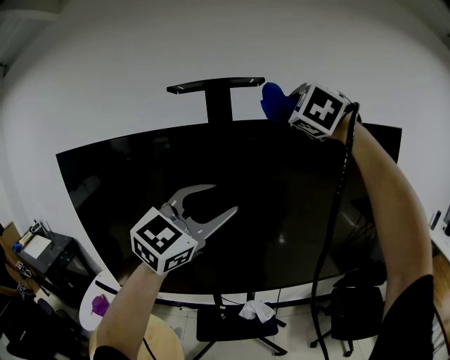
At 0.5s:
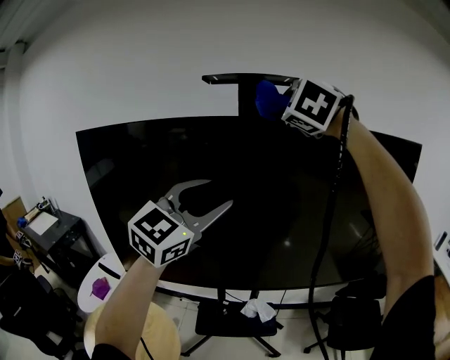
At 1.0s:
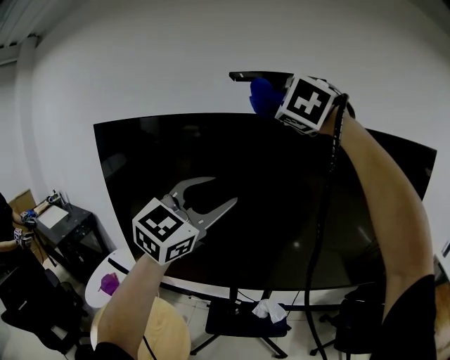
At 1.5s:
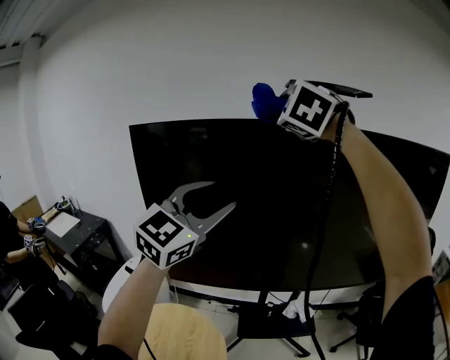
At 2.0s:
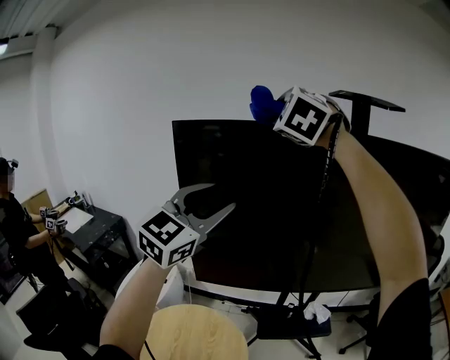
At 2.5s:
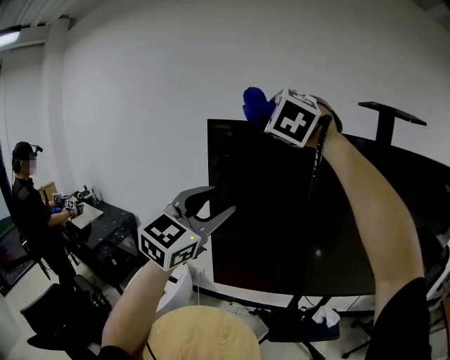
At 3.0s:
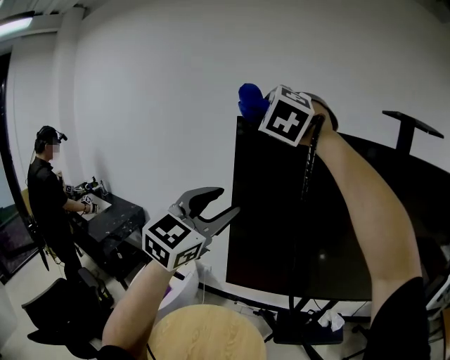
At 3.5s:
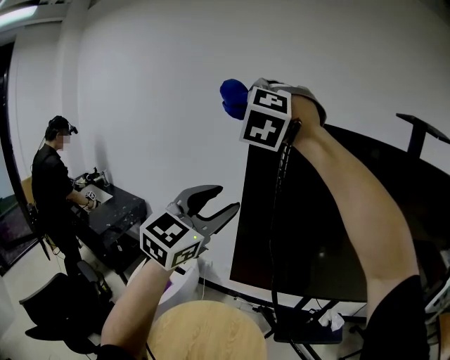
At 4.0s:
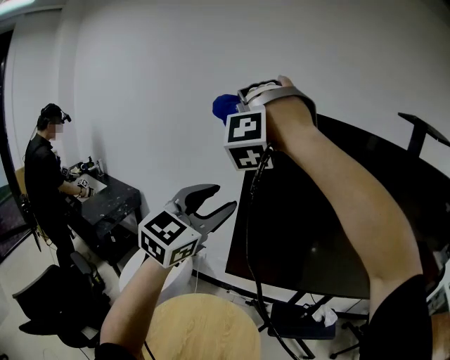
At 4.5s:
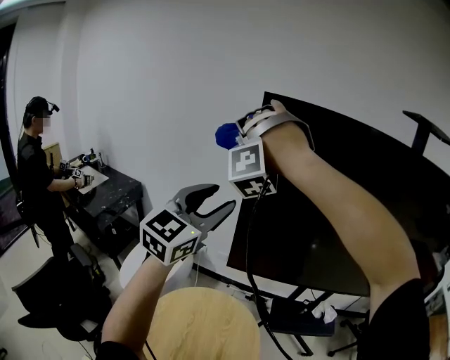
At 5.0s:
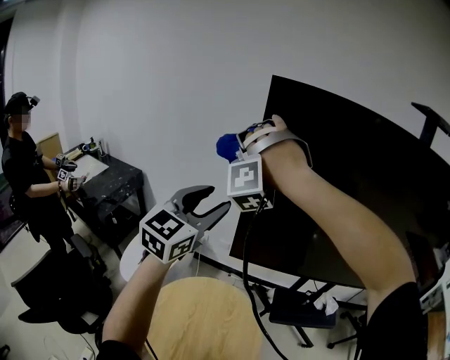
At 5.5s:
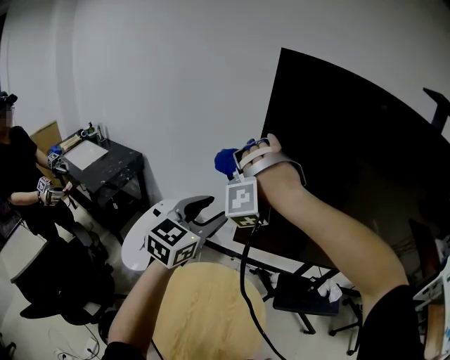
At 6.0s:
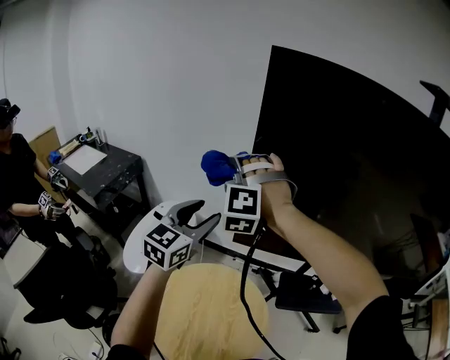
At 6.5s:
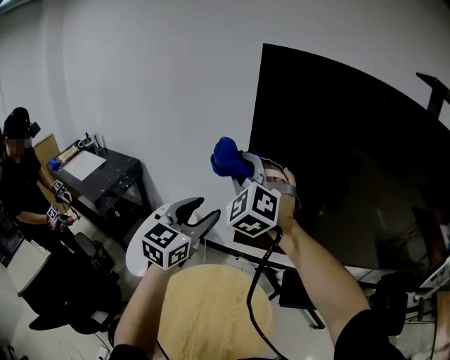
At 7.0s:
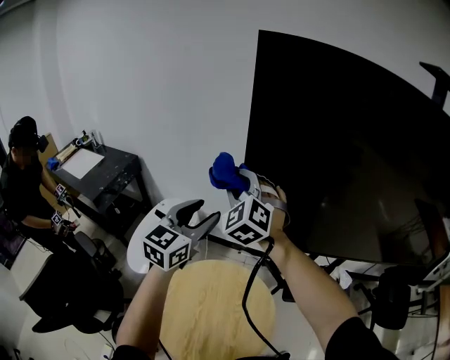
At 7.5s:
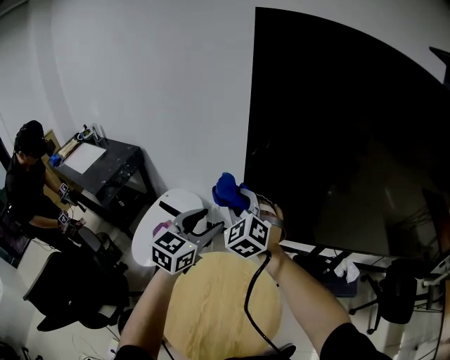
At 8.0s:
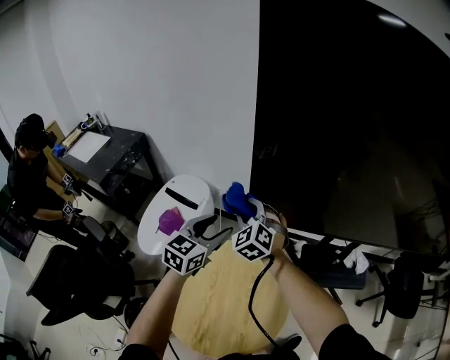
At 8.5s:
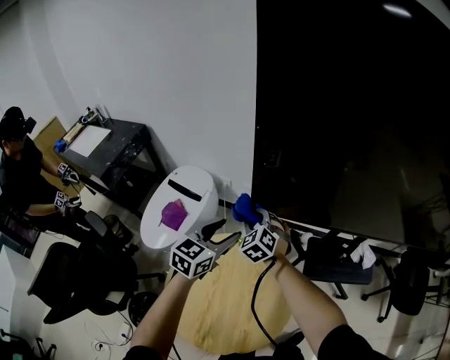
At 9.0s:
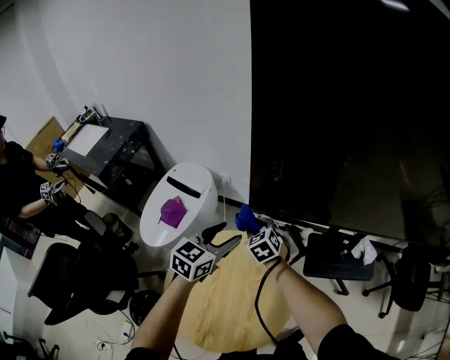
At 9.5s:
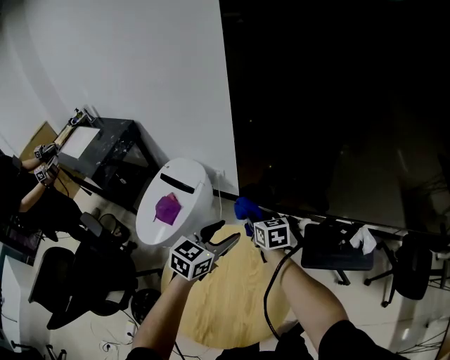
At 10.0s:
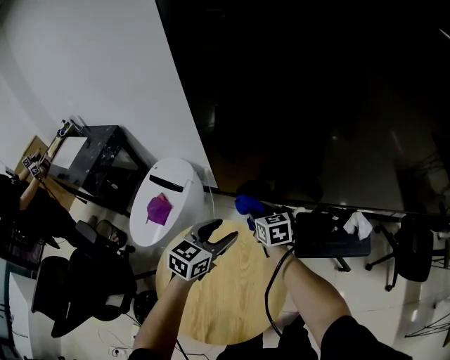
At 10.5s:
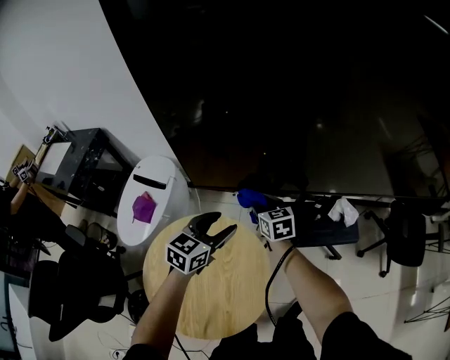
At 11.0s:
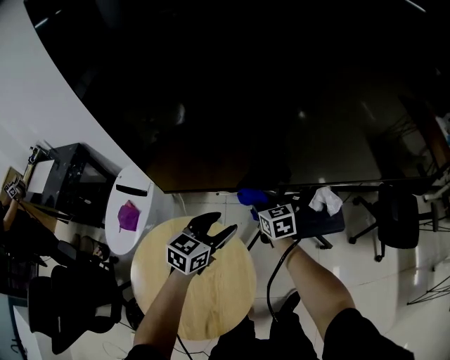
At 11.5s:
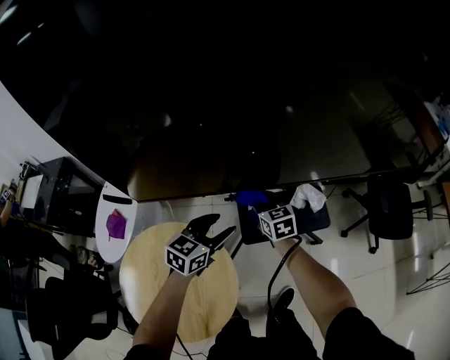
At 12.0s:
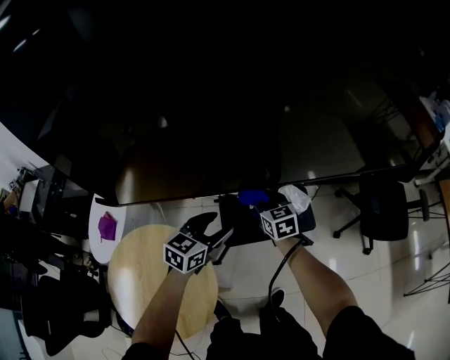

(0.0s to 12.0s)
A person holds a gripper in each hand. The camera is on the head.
0.0s - 2.0s: Both grippers are carried to the left, approximately 40 cm.
2.0s - 4.0s: The right gripper shifts about 30 cm to the left, and twists roughly 50 degrees counterclockwise, seen from behind, while the left gripper goes about 20 cm to the left.
4.0s - 6.0s: The right gripper travels downward by approximately 30 cm, and swivels roughly 30 degrees; the left gripper travels downward by about 20 cm.
6.0s - 8.0s: Both grippers move downward, about 20 cm. The right gripper rotates around the line of its fingers by some 50 degrees, clockwise from behind.
8.0s - 10.0s: The right gripper is displaced downward and to the right by roughly 20 cm, and rotates around the line of its fingers by some 50 degrees, clockwise from behind, while the left gripper heads to the right and downward, covering approximately 15 cm.
10.0s - 12.0s: Both grippers move to the right, approximately 35 cm.

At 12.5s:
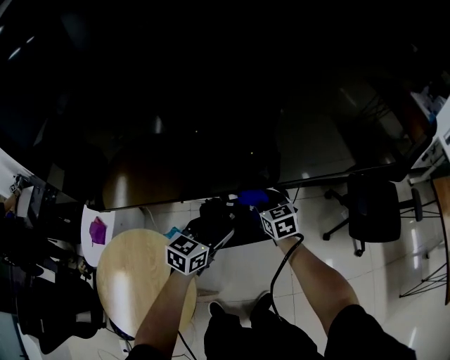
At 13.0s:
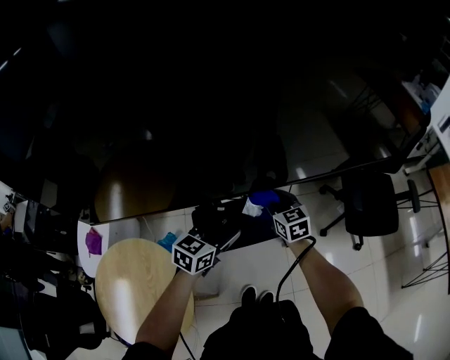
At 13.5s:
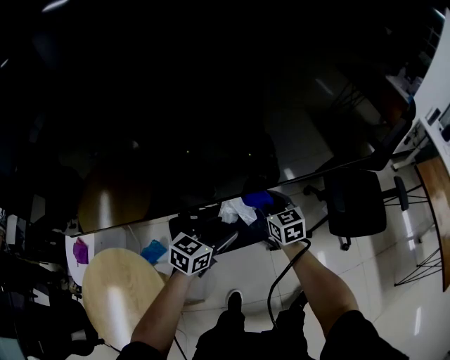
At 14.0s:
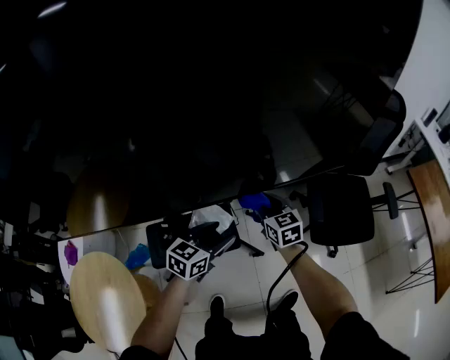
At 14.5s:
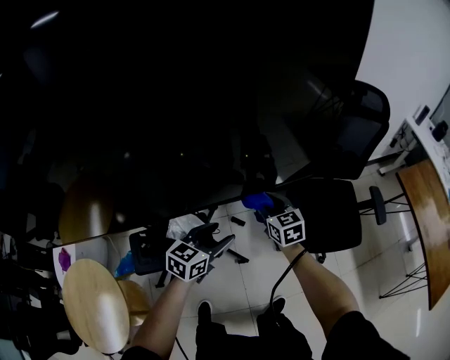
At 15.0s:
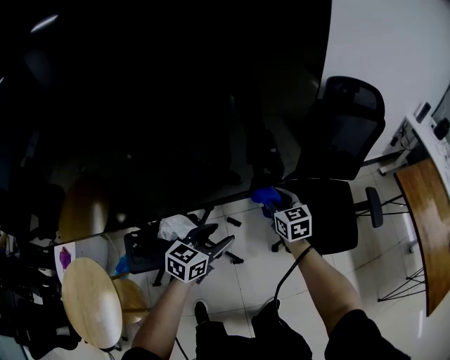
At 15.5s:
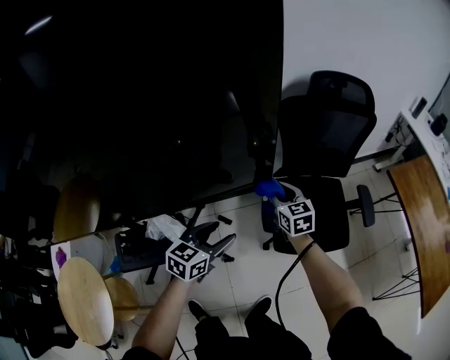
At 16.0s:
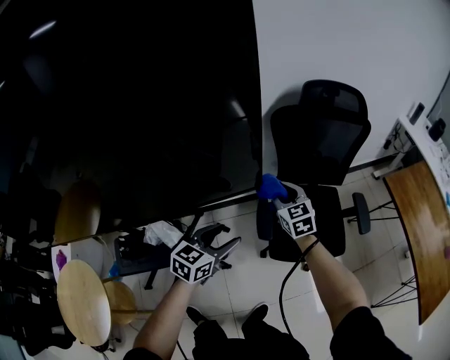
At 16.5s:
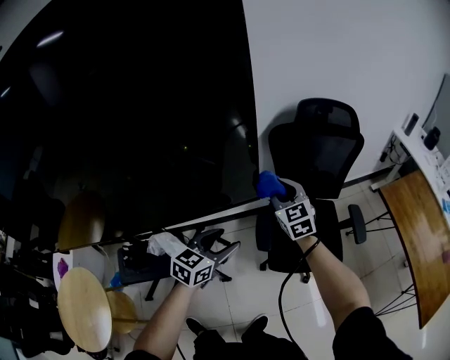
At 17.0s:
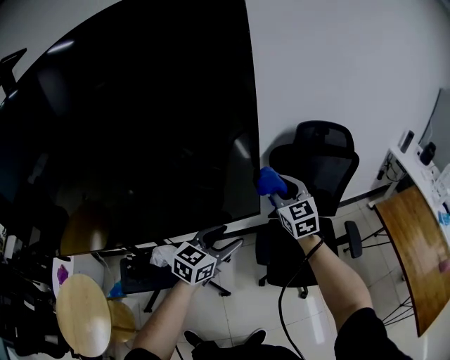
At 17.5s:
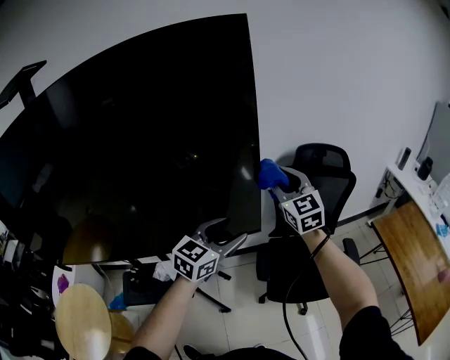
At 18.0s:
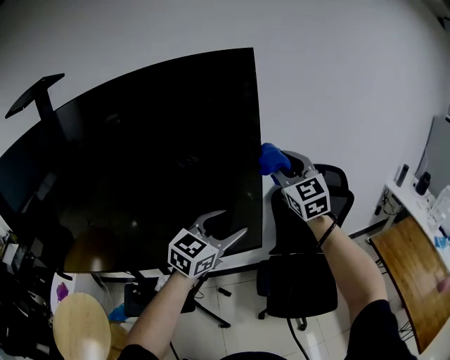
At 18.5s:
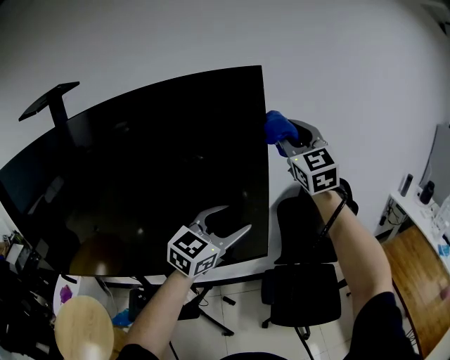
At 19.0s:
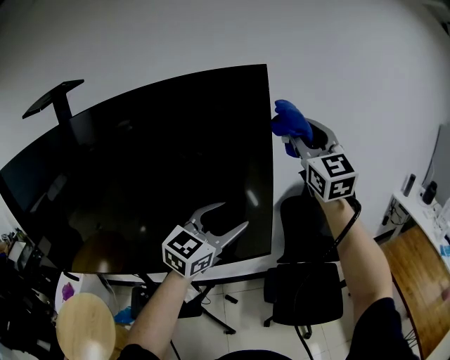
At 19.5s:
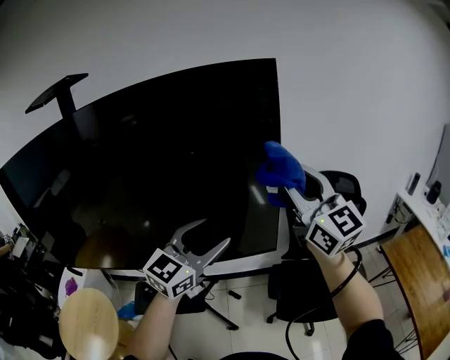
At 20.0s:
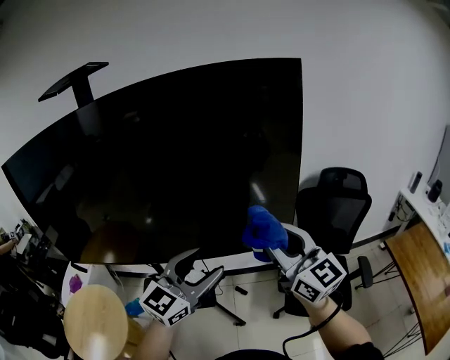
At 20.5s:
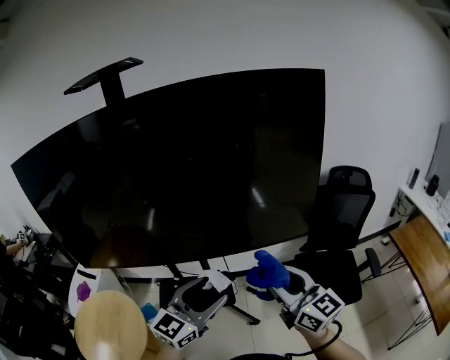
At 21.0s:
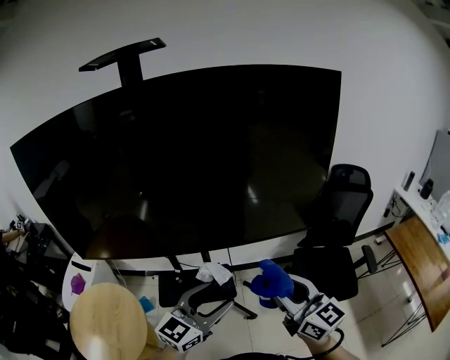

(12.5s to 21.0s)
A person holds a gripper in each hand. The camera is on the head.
12.5s - 14.5s: The two grippers travel together, to the right, roughly 40 cm.
14.5s - 16.5s: The left gripper shifts roughly 20 cm to the right. The right gripper travels to the right, upward and forward by about 25 cm, and rotates roughly 20 degrees.
16.5s - 19.0s: The two grippers go approximately 40 cm upward. The left gripper swivels roughly 30 degrees. Meanwhile the right gripper tips its fingers upward by roughly 40 degrees.
19.0s - 21.0s: The right gripper heads backward, to the left and downward, covering some 50 cm, and turns by some 40 degrees; the left gripper heads to the left, backward and downward, covering some 40 cm.

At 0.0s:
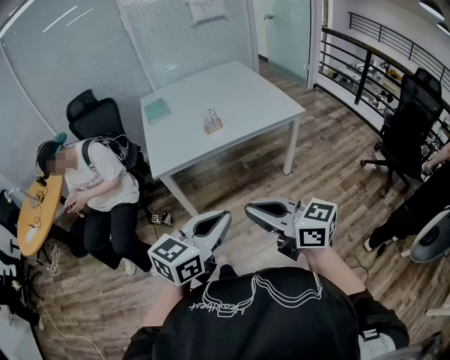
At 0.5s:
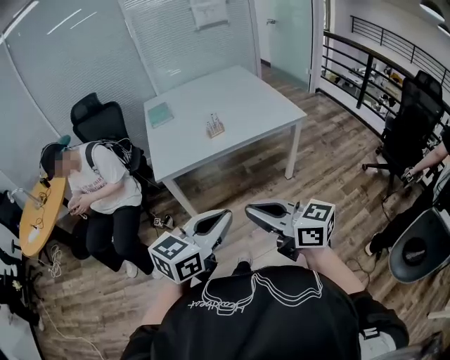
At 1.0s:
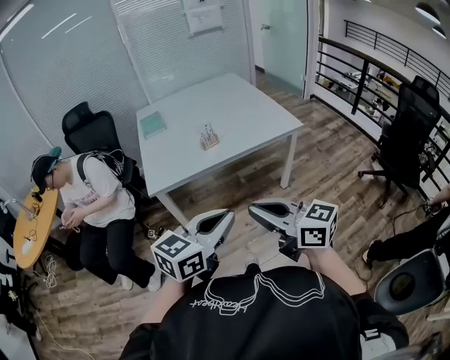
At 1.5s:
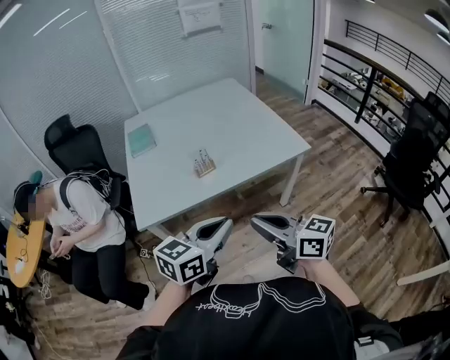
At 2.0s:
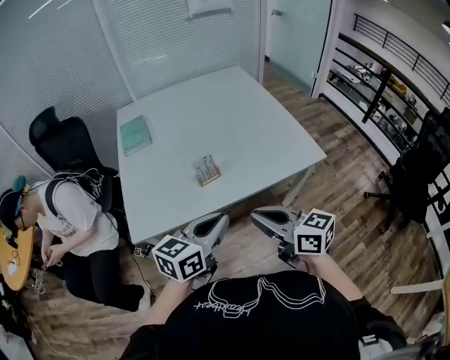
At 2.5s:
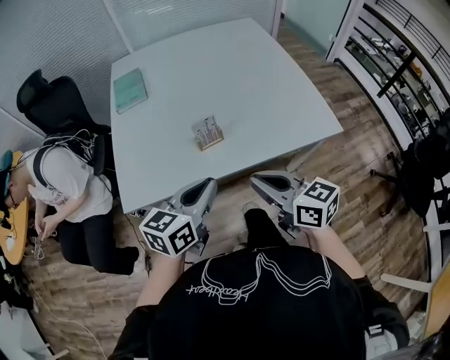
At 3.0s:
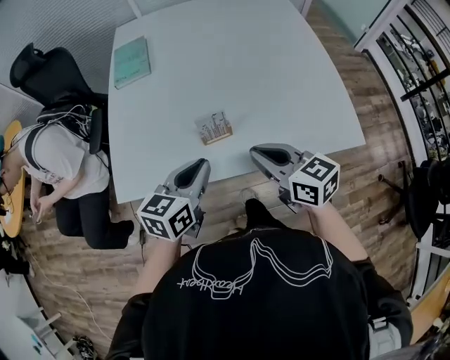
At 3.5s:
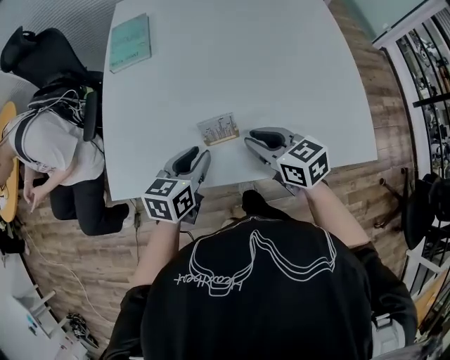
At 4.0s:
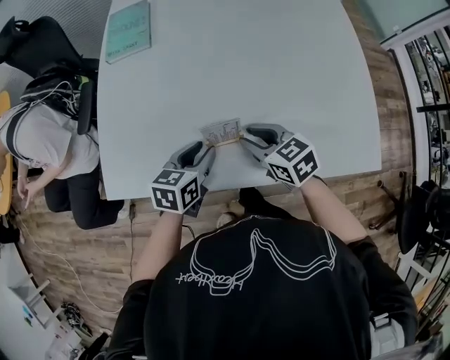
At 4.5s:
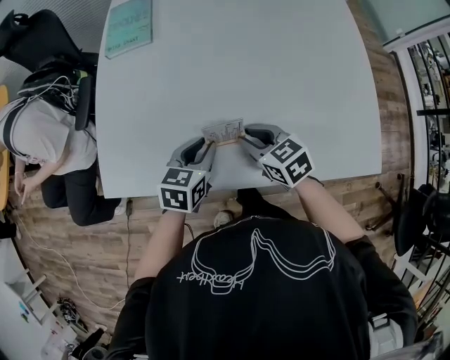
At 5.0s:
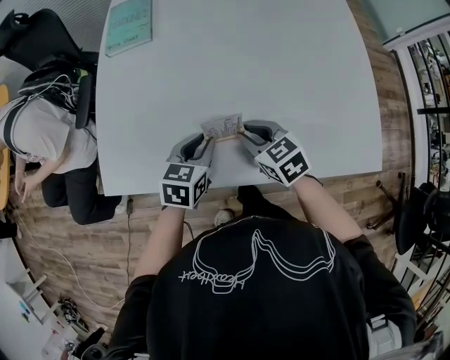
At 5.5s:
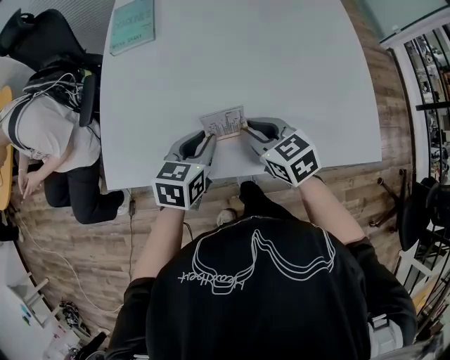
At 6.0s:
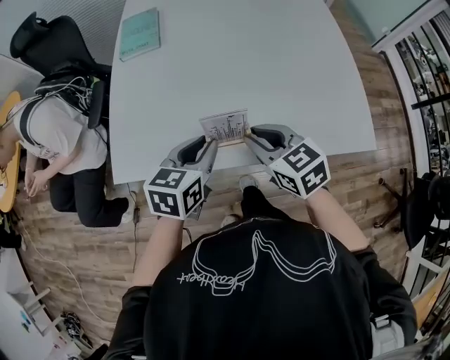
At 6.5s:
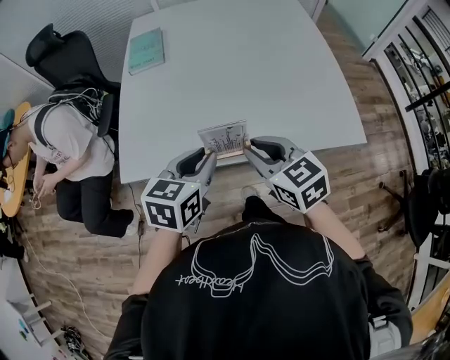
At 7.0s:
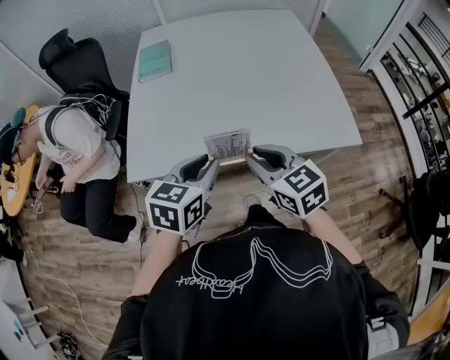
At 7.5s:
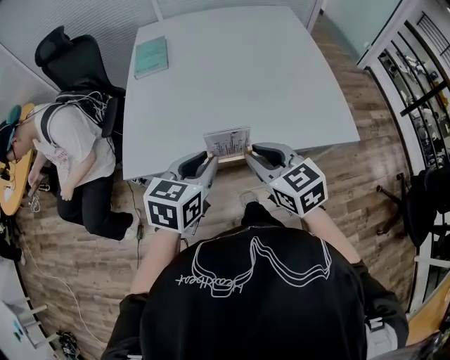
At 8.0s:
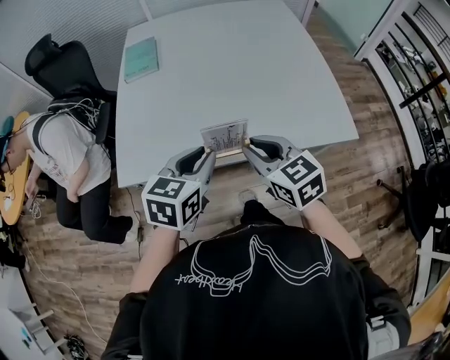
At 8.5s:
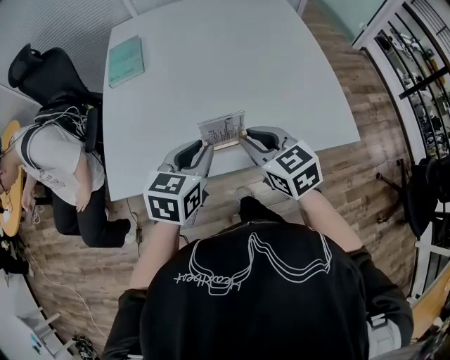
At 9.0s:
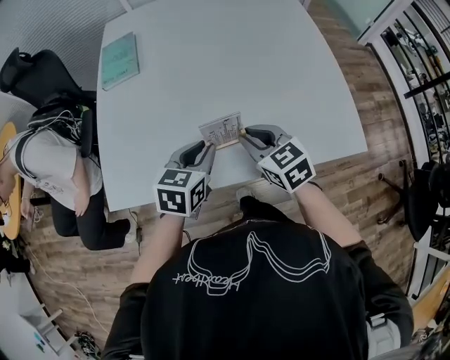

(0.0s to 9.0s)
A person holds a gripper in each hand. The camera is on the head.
0.0s - 2.0s: The pair of grippers is taken forward, roughly 40 cm.
2.0s - 4.5s: Both grippers travel together forward and downward, approximately 40 cm. The right gripper points its fingers some 30 degrees further downward, and opens its fingers. Meanwhile the left gripper turns by approximately 40 degrees, and opens its fingers.
4.5s - 7.0s: Both grippers travel together backward and upward, approximately 30 cm. The right gripper rotates some 20 degrees.
7.0s - 9.0s: The two grippers go some 20 cm forward and downward.
